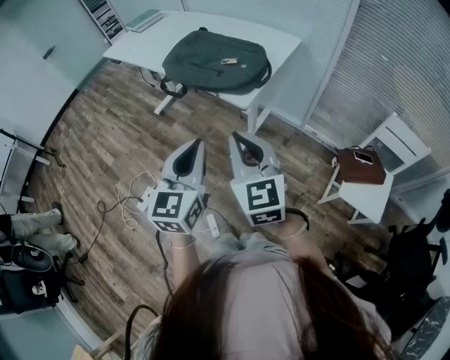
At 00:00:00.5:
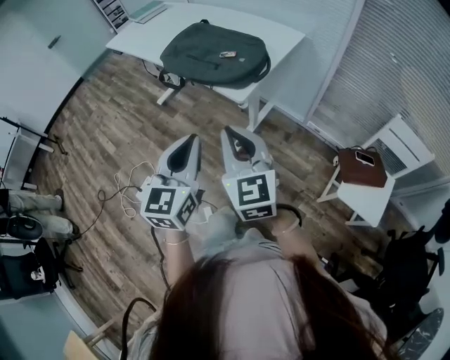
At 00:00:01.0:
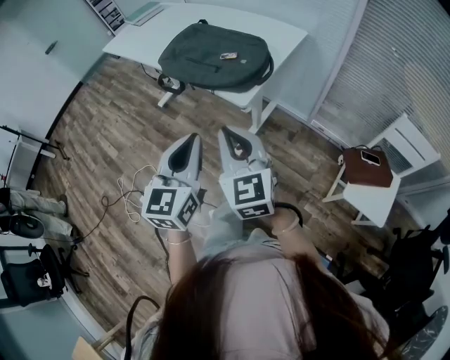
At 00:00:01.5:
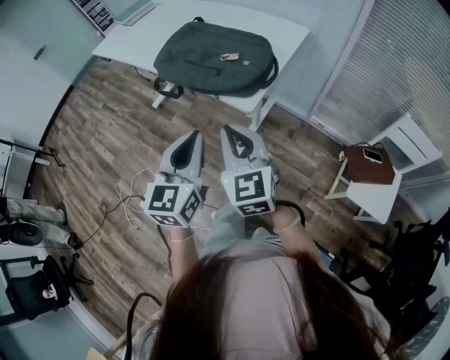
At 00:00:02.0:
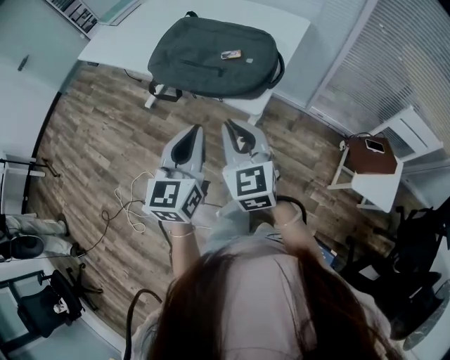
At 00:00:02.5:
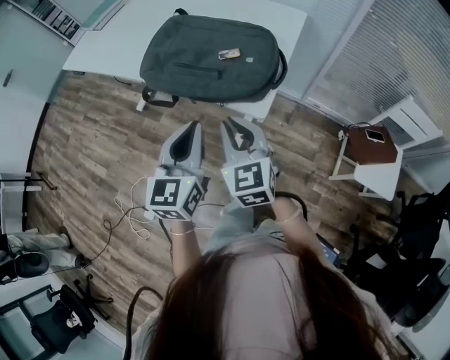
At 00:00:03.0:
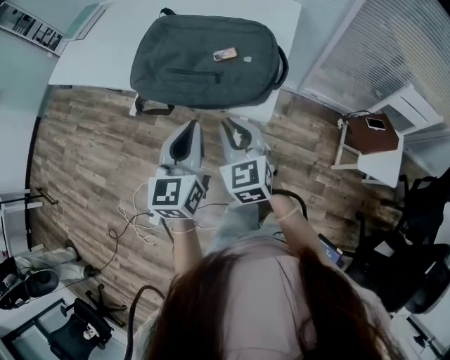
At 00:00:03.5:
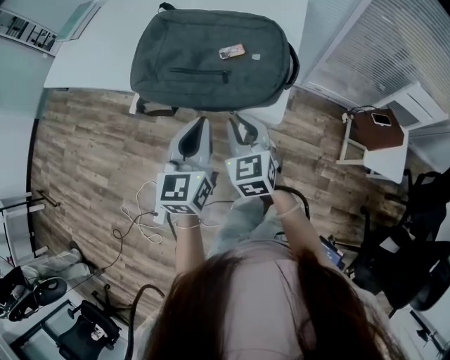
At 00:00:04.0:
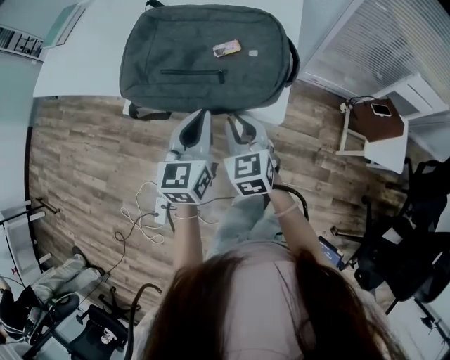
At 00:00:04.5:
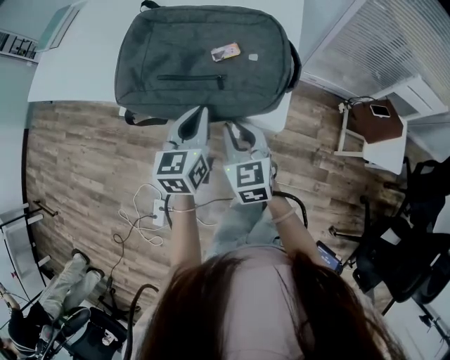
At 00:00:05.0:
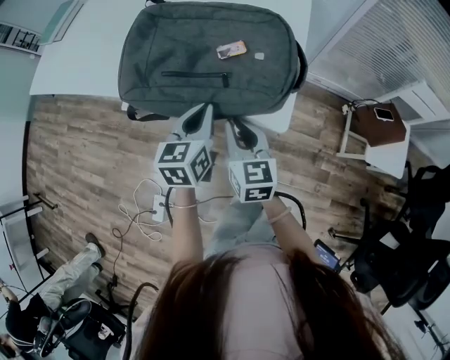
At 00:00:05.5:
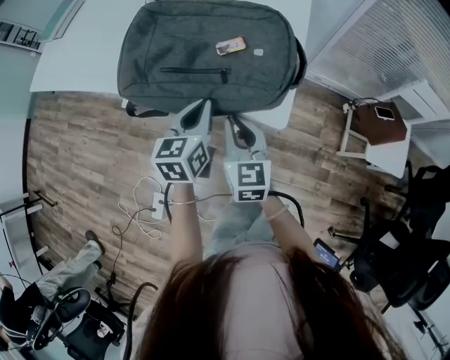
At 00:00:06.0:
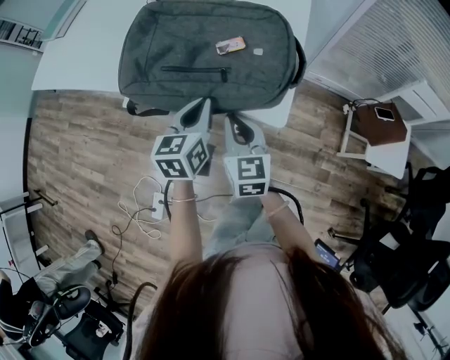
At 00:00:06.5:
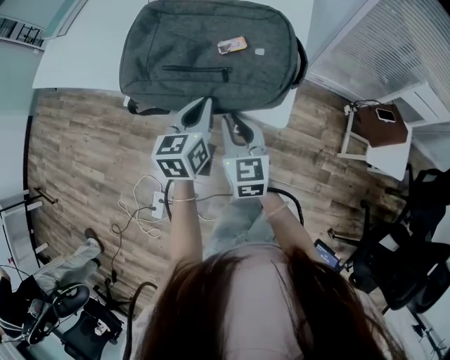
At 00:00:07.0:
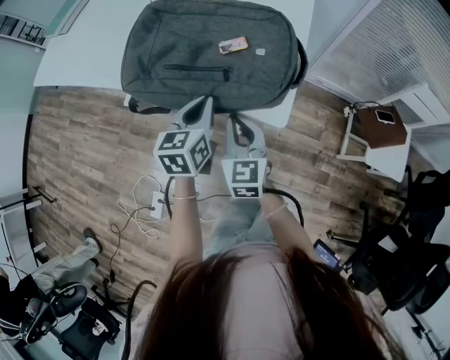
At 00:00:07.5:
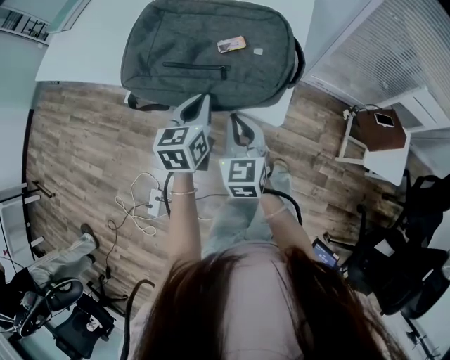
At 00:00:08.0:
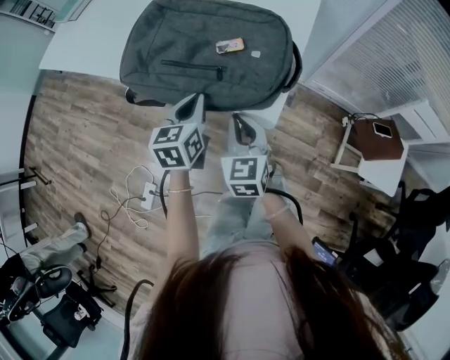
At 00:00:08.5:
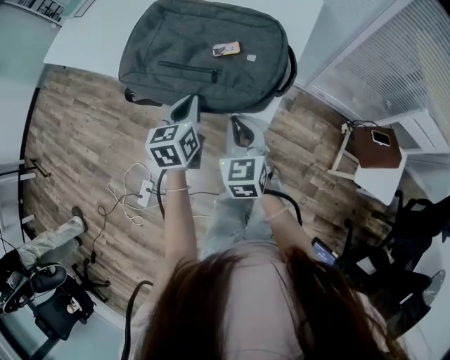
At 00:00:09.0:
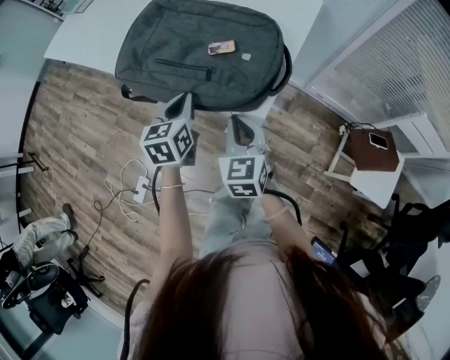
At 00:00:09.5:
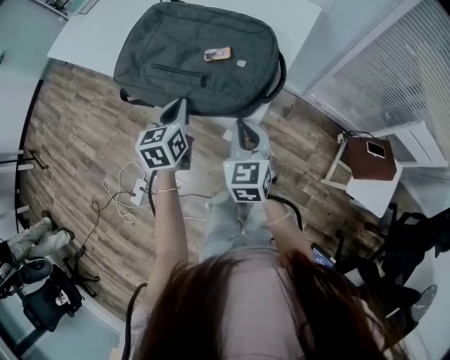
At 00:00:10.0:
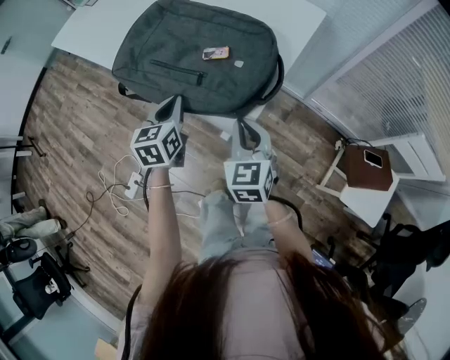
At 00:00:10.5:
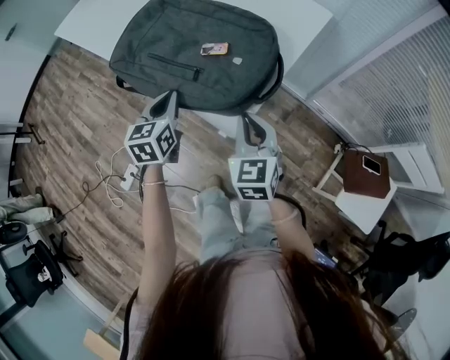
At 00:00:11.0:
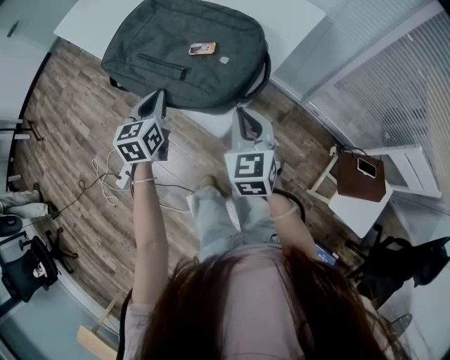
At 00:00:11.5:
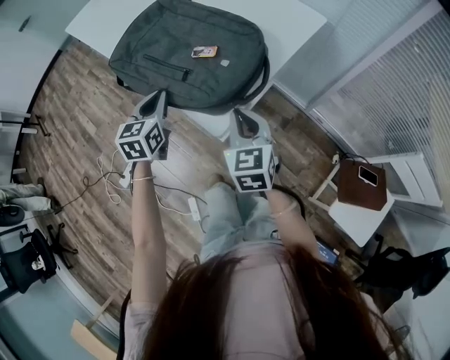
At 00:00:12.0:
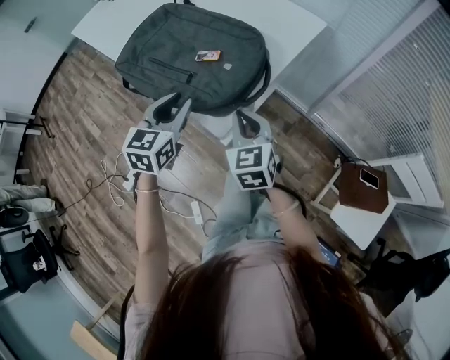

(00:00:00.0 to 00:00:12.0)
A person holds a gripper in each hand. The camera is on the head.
00:00:00.0 - 00:00:02.0: Both grippers move forward, roughly 15 cm.
00:00:02.0 - 00:00:04.0: The right gripper goes approximately 20 cm downward and forward, and turns by approximately 20 degrees, while the left gripper moves forward and downward, approximately 20 cm.
00:00:04.0 - 00:00:06.0: The left gripper heads downward, covering approximately 5 cm.
00:00:06.0 - 00:00:08.0: There are only small adjustments of the grippers.
00:00:08.0 - 00:00:10.0: The right gripper moves to the right, about 10 cm.
00:00:10.0 - 00:00:12.0: The right gripper changes place by roughly 5 cm. The left gripper travels to the right and upward by some 10 cm, and opens.

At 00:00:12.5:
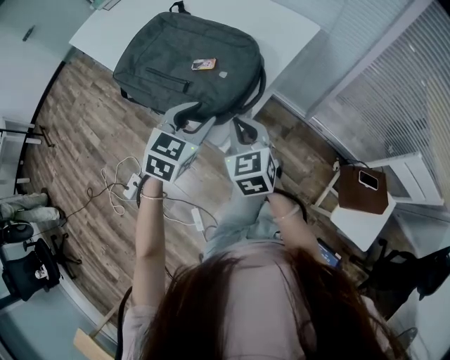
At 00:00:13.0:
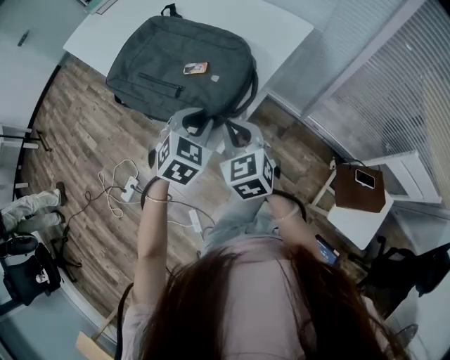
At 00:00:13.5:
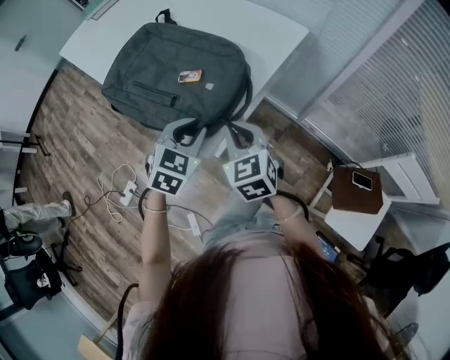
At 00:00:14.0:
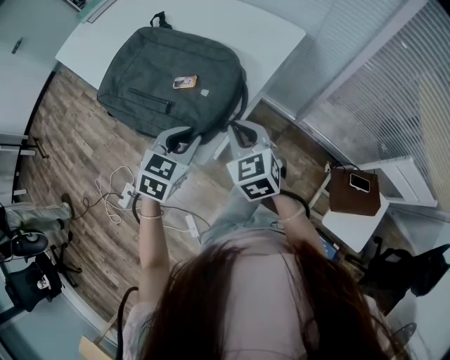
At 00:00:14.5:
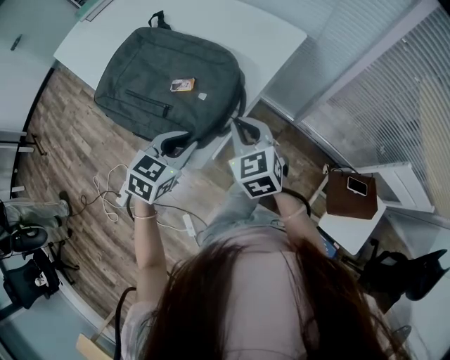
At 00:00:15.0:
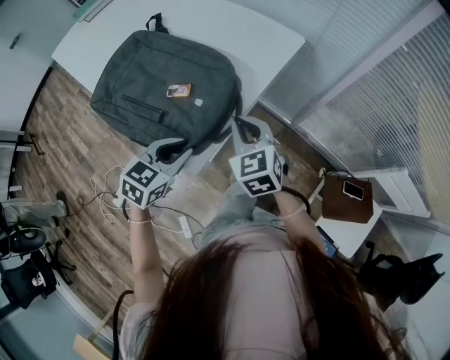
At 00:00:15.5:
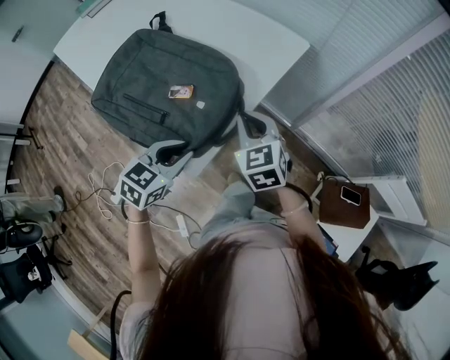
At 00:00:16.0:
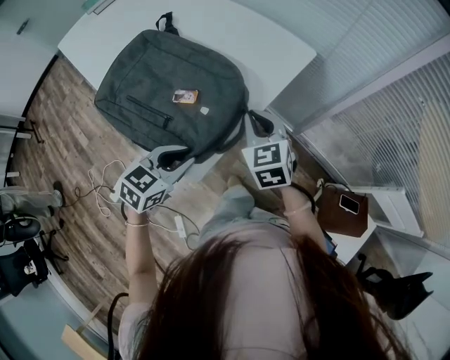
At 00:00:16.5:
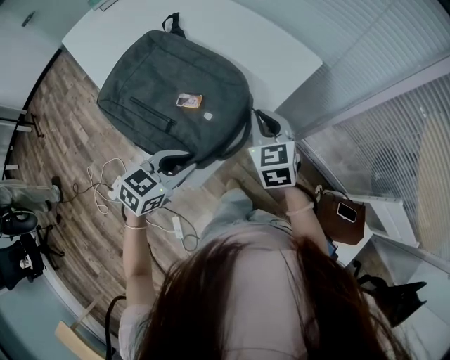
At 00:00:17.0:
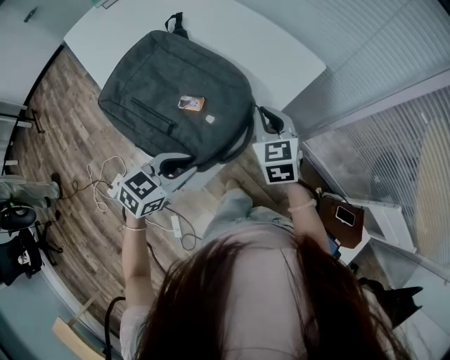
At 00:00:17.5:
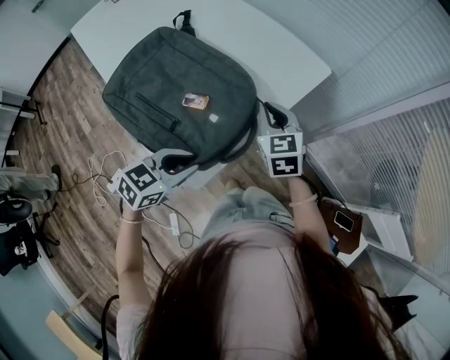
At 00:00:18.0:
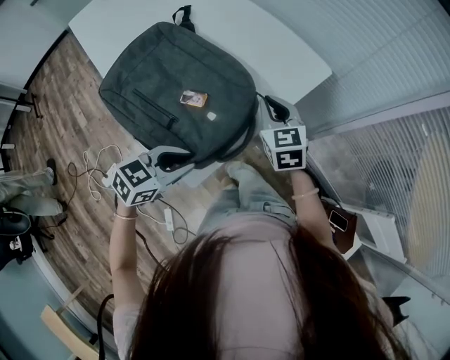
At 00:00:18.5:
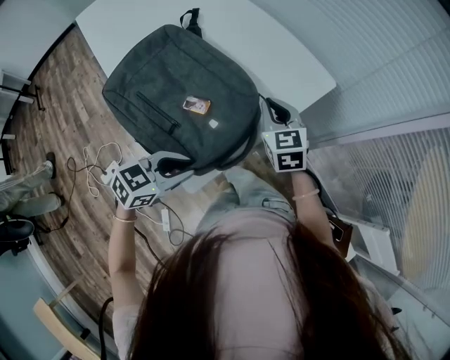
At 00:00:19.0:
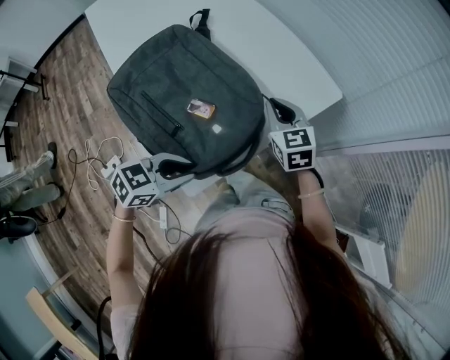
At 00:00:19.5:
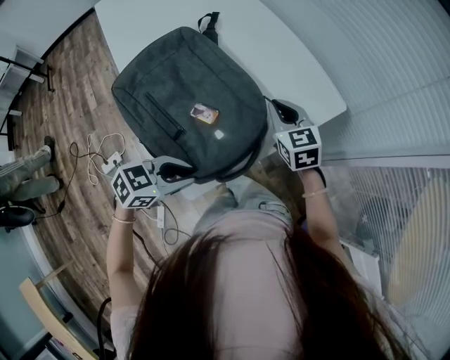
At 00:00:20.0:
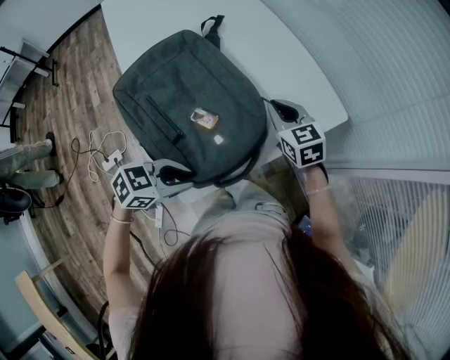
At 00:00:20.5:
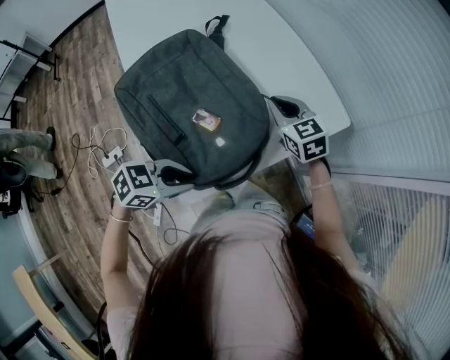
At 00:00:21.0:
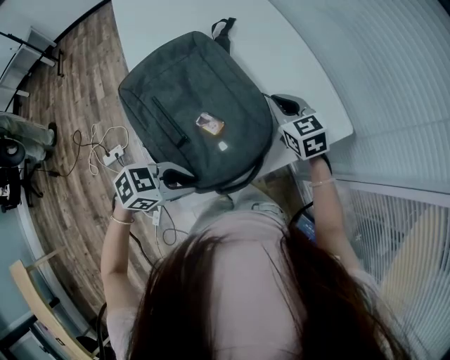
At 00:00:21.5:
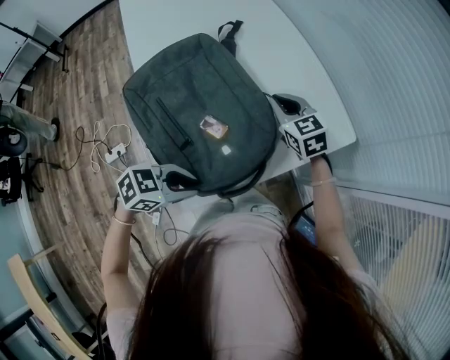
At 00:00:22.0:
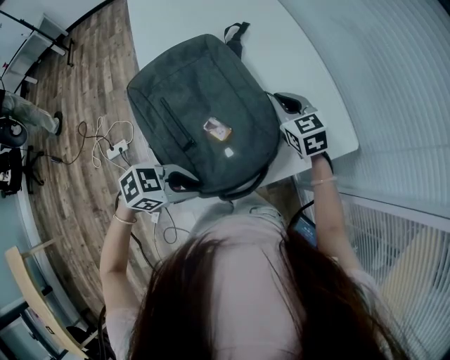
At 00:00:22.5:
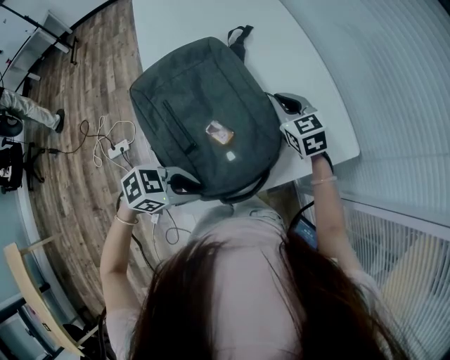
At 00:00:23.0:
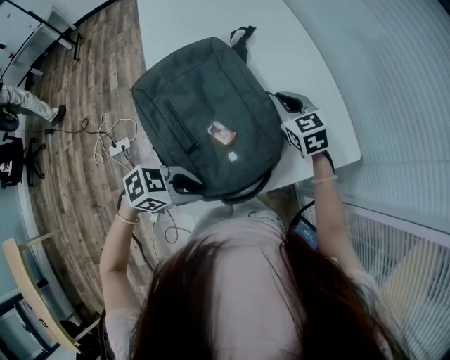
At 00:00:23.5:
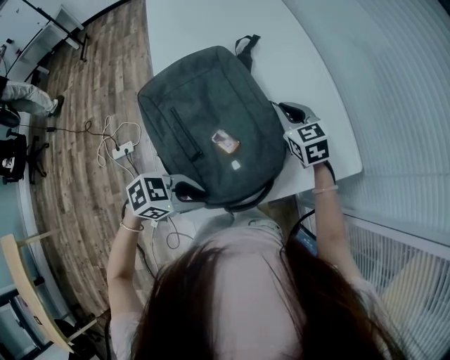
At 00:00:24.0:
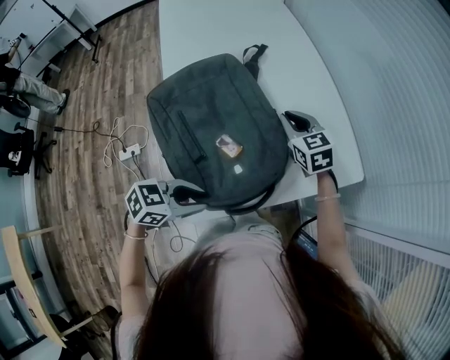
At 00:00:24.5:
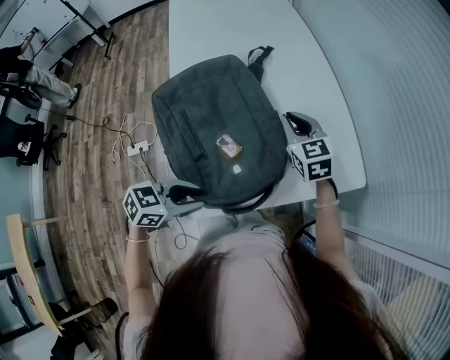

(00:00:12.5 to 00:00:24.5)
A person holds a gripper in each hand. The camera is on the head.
00:00:12.5 - 00:00:14.5: The left gripper closes its fingers. The right gripper heads forward and to the right, covering roughly 10 cm.
00:00:14.5 - 00:00:16.5: The right gripper shifts about 10 cm forward.
00:00:16.5 - 00:00:18.5: The right gripper is displaced forward by approximately 10 cm.
00:00:18.5 - 00:00:20.5: The right gripper moves forward and to the left, roughly 10 cm, and changes its angle by approximately 20 degrees.
00:00:20.5 - 00:00:22.5: The right gripper ends up approximately 10 cm from where it was.
00:00:22.5 - 00:00:24.5: The left gripper changes its angle by some 20 degrees.

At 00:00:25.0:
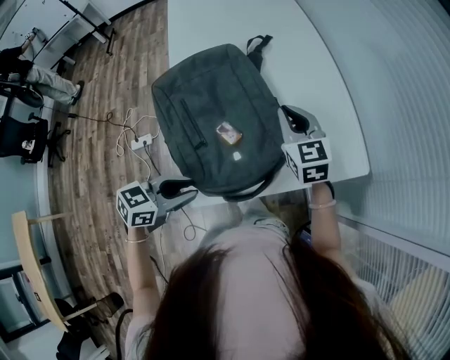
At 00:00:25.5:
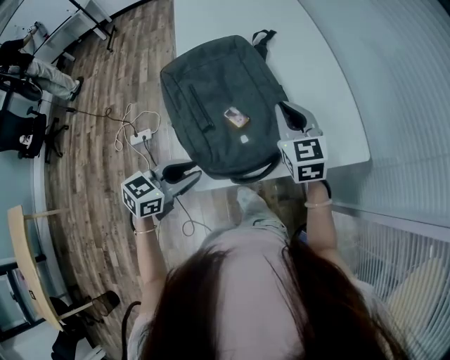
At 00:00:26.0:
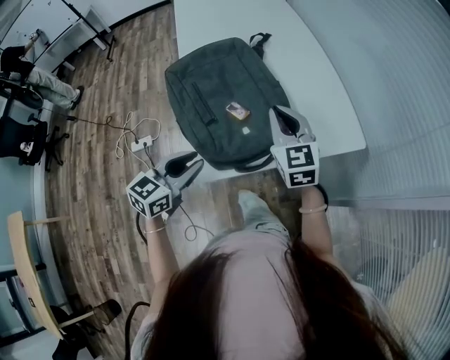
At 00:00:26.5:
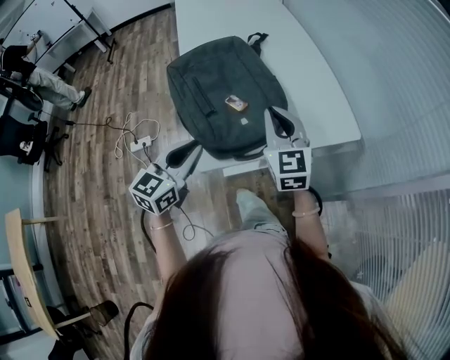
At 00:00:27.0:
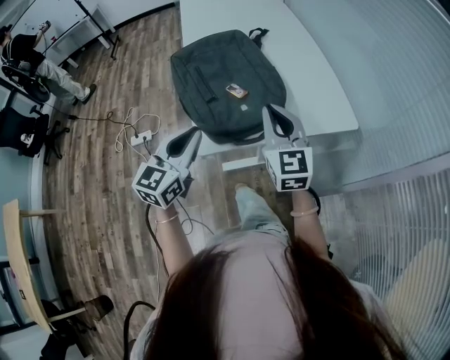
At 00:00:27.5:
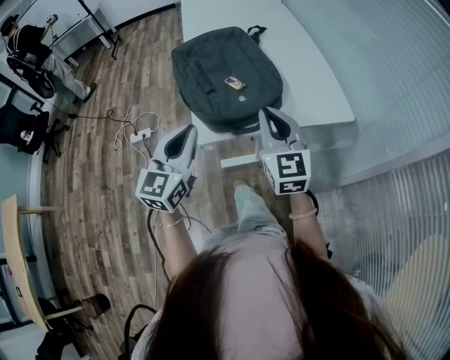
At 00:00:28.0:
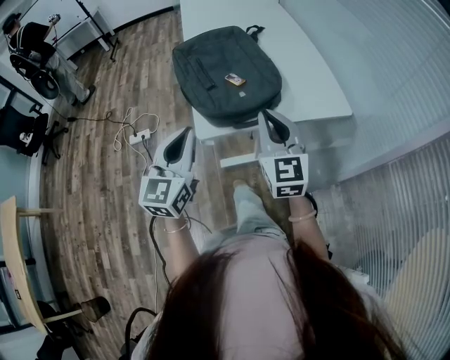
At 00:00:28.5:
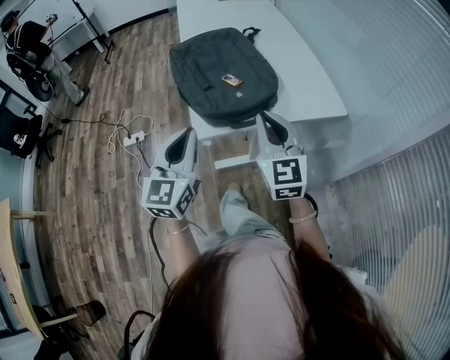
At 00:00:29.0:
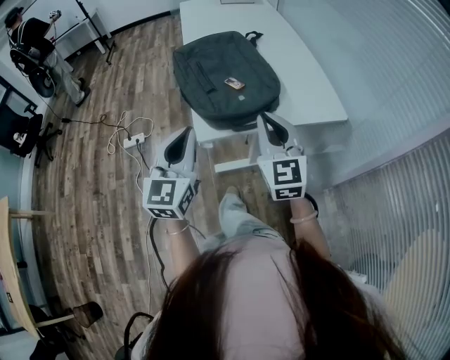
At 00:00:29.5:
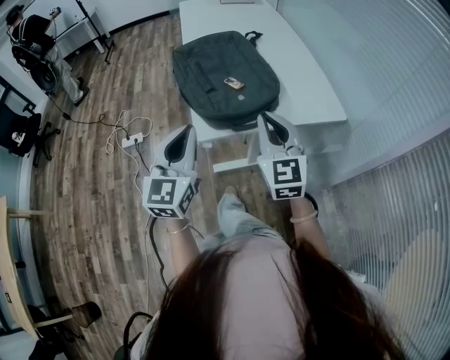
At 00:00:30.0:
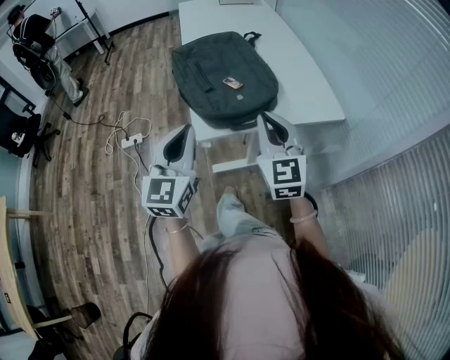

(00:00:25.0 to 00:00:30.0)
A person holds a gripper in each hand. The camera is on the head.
00:00:25.0 - 00:00:27.5: The right gripper goes about 25 cm backward; the left gripper heads upward and backward, covering about 15 cm, swivels approximately 50 degrees, and closes up.
00:00:27.5 - 00:00:30.0: There are only small adjustments of the grippers.
